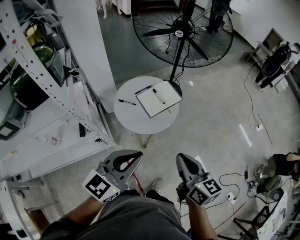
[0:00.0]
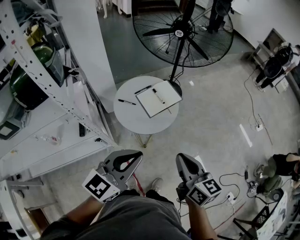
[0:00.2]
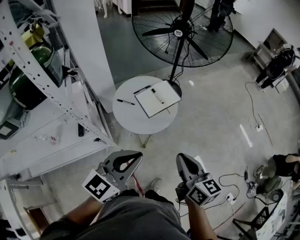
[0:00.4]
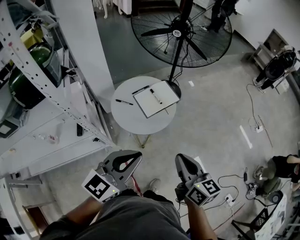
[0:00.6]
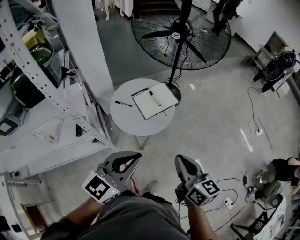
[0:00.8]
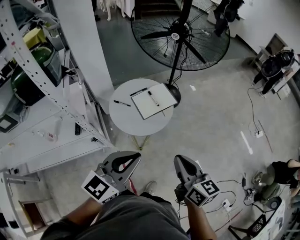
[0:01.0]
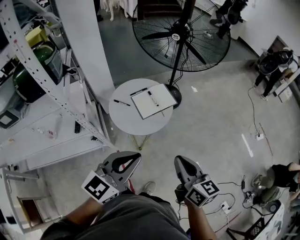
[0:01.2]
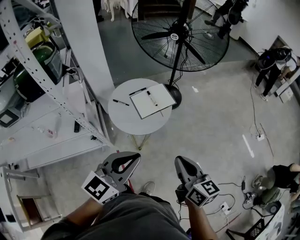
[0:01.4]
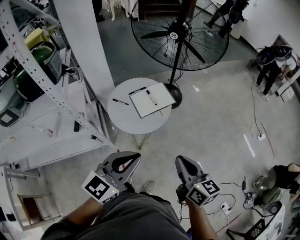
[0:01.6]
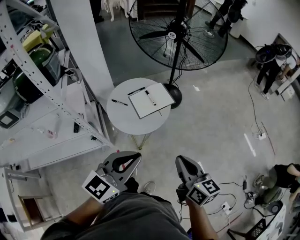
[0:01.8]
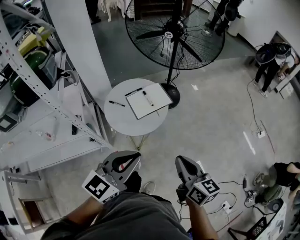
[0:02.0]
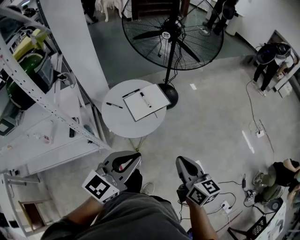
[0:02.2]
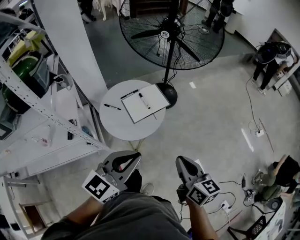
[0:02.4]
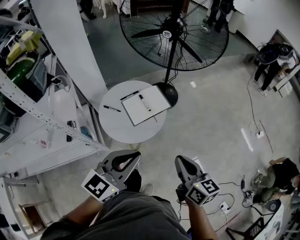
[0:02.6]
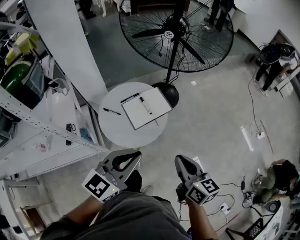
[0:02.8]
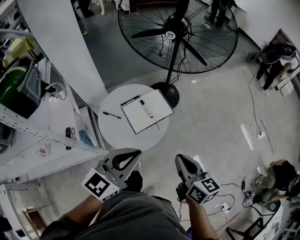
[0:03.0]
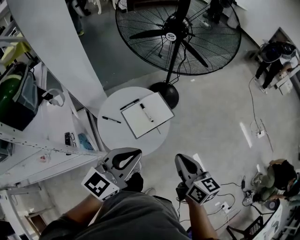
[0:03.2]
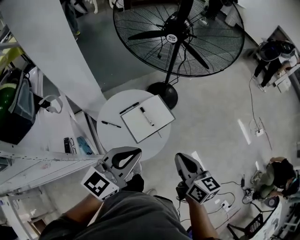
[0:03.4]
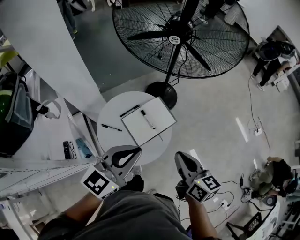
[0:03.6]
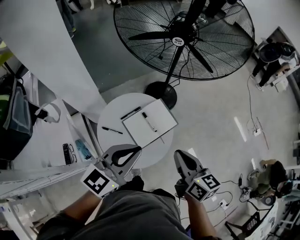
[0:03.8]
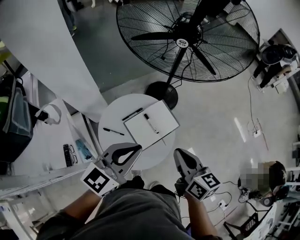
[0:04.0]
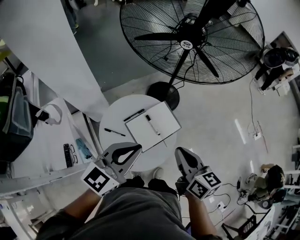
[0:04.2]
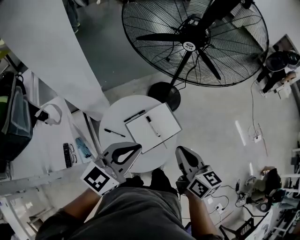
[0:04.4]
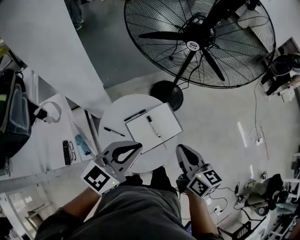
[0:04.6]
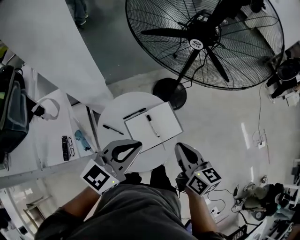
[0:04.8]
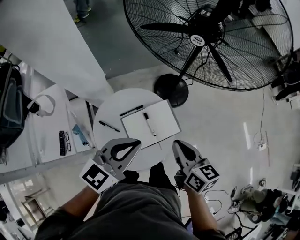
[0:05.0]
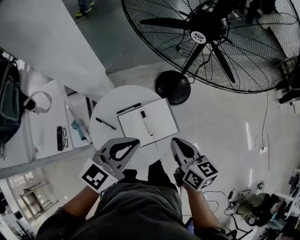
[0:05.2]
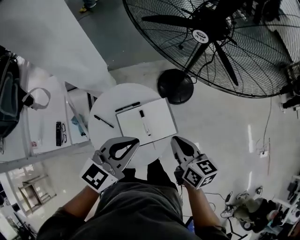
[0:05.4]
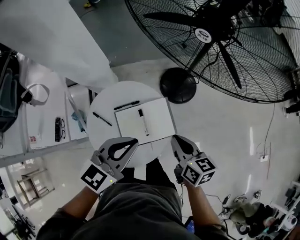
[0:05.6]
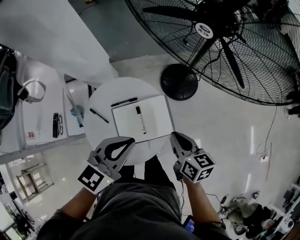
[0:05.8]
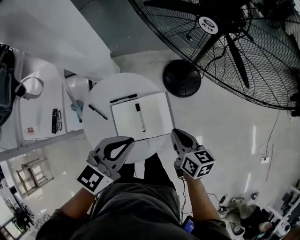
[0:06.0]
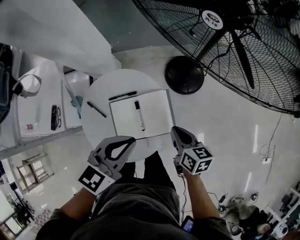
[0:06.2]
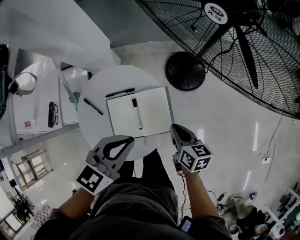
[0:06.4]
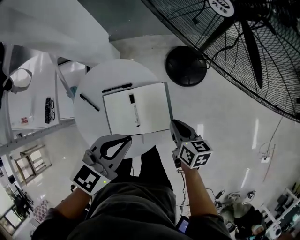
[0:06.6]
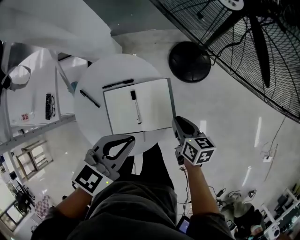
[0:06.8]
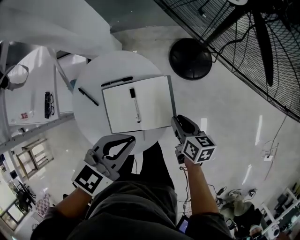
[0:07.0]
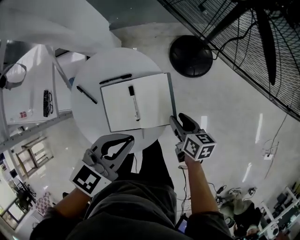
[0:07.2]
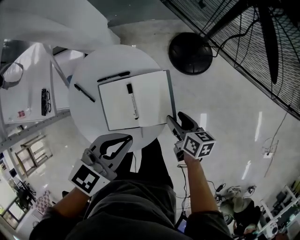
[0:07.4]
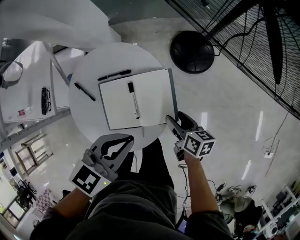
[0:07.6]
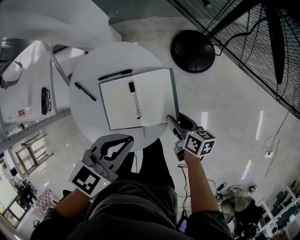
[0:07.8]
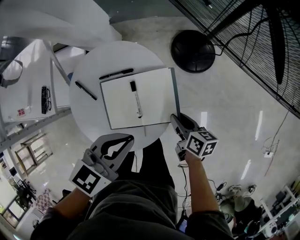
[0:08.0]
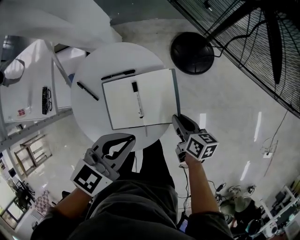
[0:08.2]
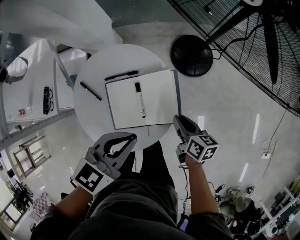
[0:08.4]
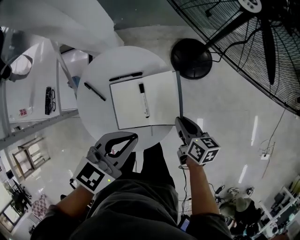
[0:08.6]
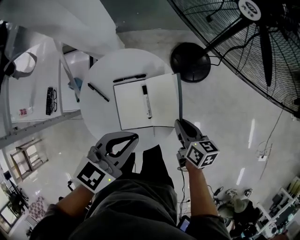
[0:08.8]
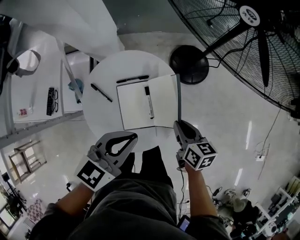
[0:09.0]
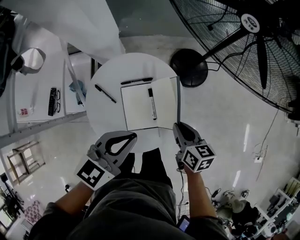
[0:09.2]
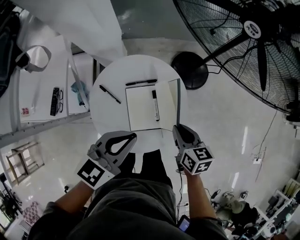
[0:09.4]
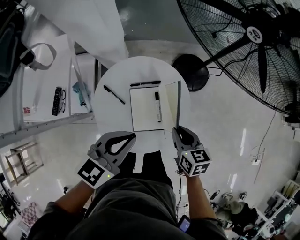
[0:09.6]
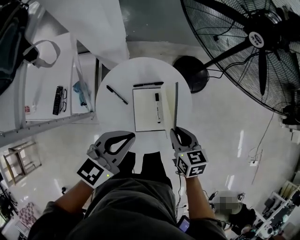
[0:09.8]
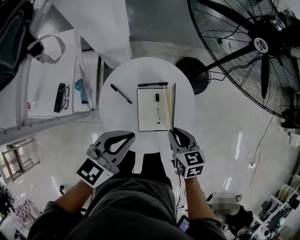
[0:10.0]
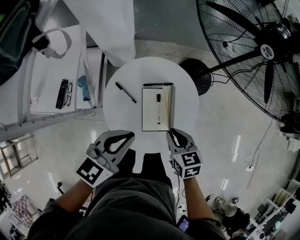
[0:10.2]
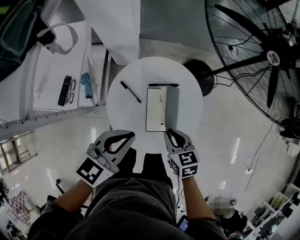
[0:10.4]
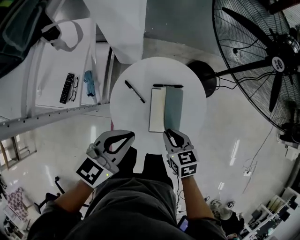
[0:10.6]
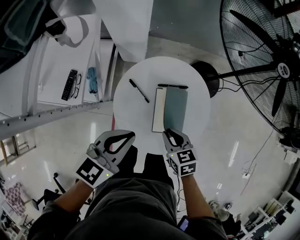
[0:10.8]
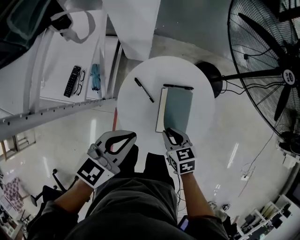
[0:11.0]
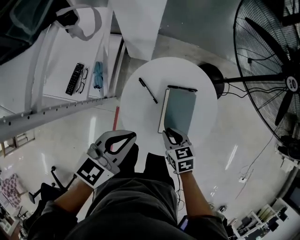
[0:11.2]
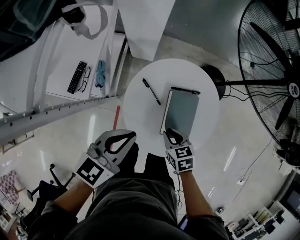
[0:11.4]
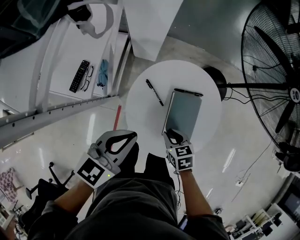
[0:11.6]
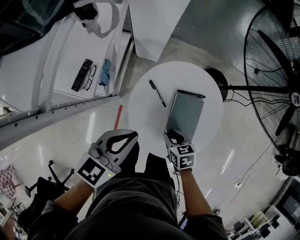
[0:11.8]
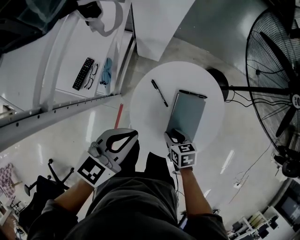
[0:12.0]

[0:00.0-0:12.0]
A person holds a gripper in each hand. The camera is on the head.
0:00.0 to 0:01.6: The two grippers go some 10 cm to the right.
0:01.6 to 0:03.0: Both grippers move forward, approximately 15 cm.
0:03.0 to 0:04.4: The two grippers go approximately 20 cm forward and to the left.
0:04.4 to 0:06.0: The left gripper travels to the right, downward and forward by some 15 cm, and swivels roughly 30 degrees, while the right gripper heads downward, forward and to the right, covering some 25 cm, and changes its angle by approximately 30 degrees.
0:06.0 to 0:07.6: The left gripper goes roughly 10 cm downward; the right gripper moves downward, some 15 cm, and opens its fingers.
0:07.6 to 0:09.0: The right gripper moves upward, roughly 10 cm, and closes its fingers. Meanwhile the left gripper is displaced to the left by some 5 cm.
0:09.0 to 0:10.4: The two grippers go roughly 15 cm to the left. The right gripper changes its angle by about 30 degrees.
0:10.4 to 0:12.0: The left gripper is displaced to the left by about 10 cm, while the right gripper heads downward and to the left, covering roughly 15 cm.

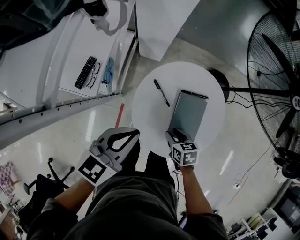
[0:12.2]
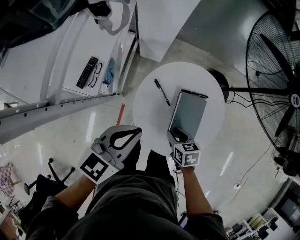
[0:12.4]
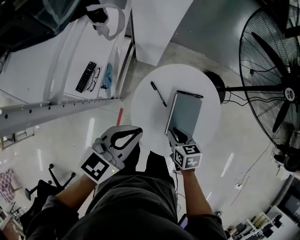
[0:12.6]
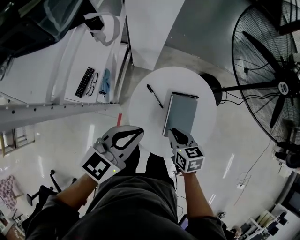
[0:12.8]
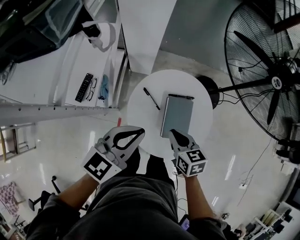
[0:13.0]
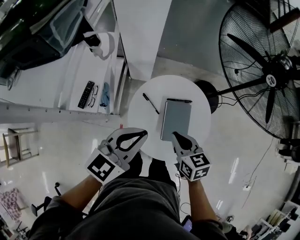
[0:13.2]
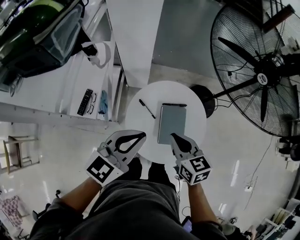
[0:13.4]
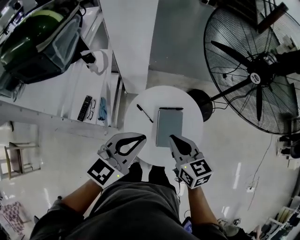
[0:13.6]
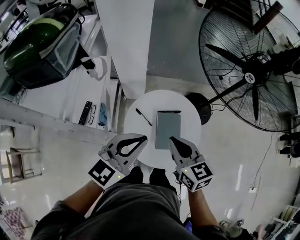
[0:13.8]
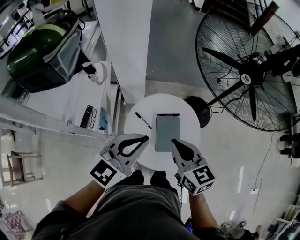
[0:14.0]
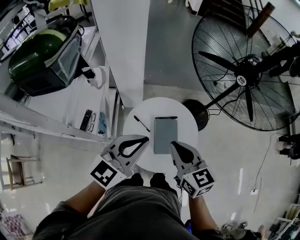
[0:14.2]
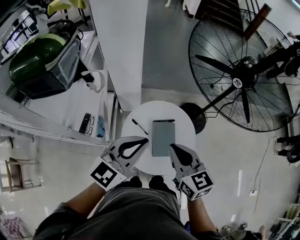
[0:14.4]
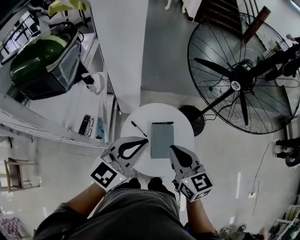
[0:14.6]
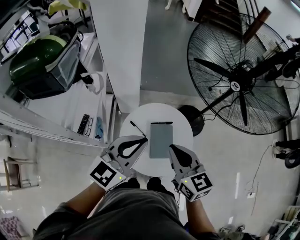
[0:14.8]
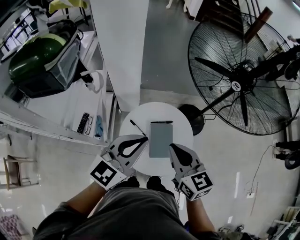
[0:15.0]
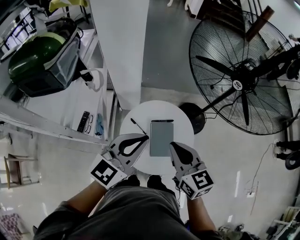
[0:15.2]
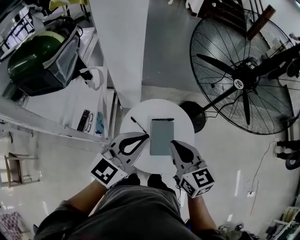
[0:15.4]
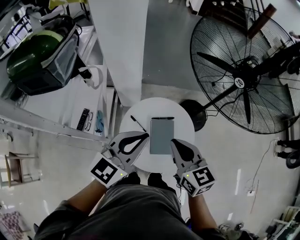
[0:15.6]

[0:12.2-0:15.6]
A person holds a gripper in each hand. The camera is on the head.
0:12.2 to 0:13.8: The left gripper travels upward and to the right by roughly 15 cm, and rotates about 20 degrees. Meanwhile the right gripper moves upward, some 30 cm, tips its fingers upward by roughly 40 degrees, and closes.
0:13.8 to 0:15.6: The left gripper ends up about 5 cm from where it was. The right gripper heads upward, covering roughly 5 cm.

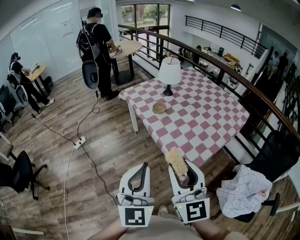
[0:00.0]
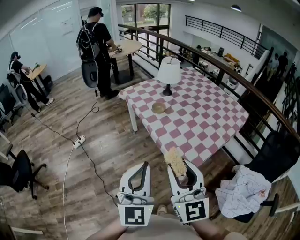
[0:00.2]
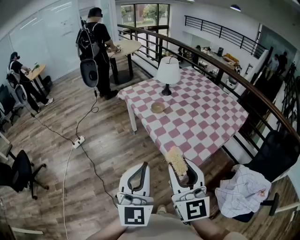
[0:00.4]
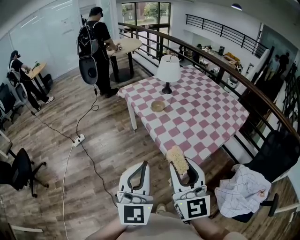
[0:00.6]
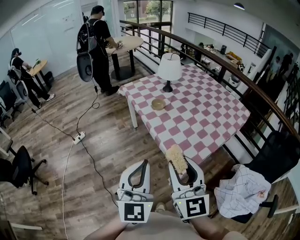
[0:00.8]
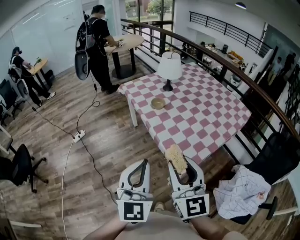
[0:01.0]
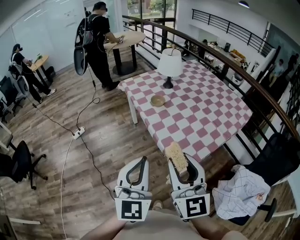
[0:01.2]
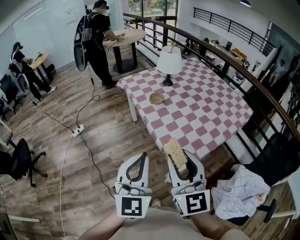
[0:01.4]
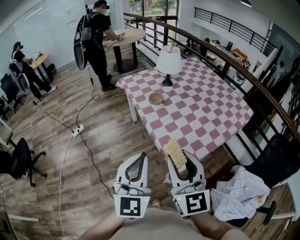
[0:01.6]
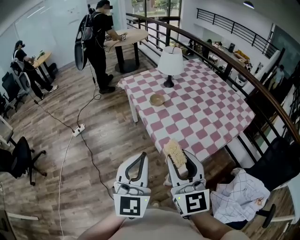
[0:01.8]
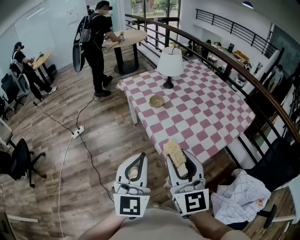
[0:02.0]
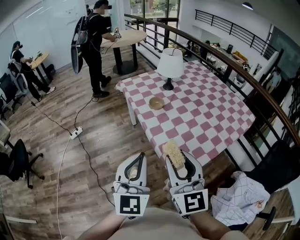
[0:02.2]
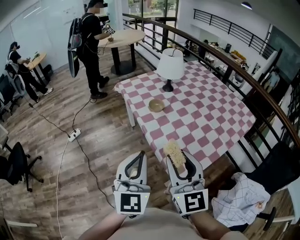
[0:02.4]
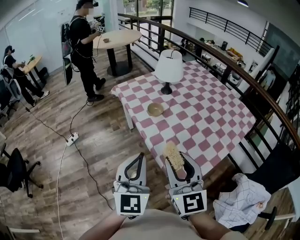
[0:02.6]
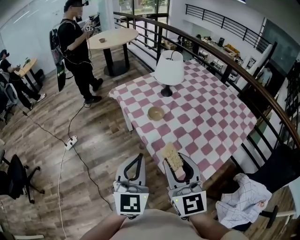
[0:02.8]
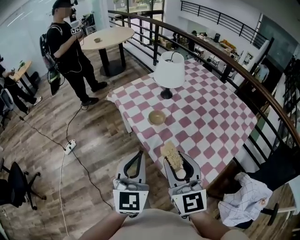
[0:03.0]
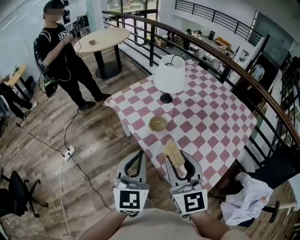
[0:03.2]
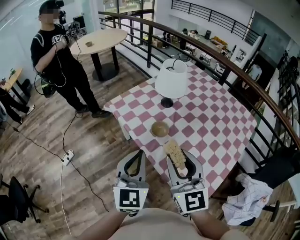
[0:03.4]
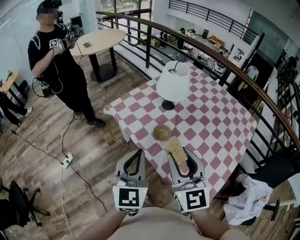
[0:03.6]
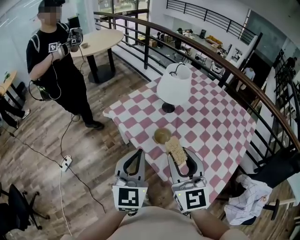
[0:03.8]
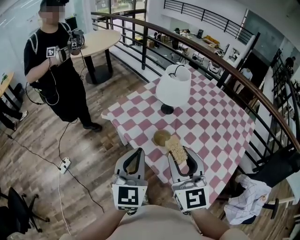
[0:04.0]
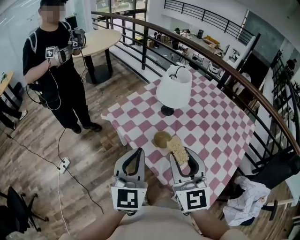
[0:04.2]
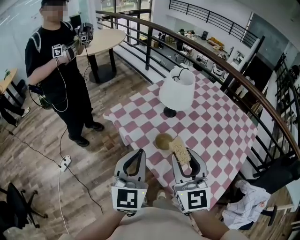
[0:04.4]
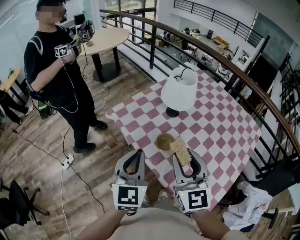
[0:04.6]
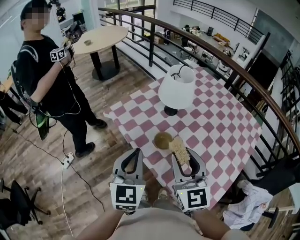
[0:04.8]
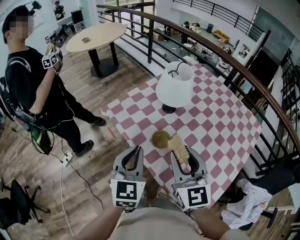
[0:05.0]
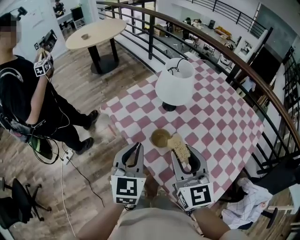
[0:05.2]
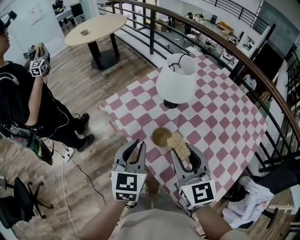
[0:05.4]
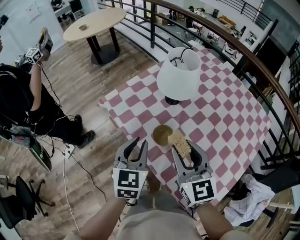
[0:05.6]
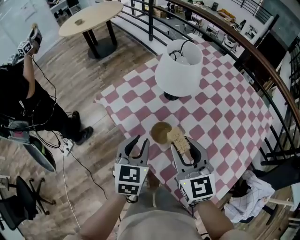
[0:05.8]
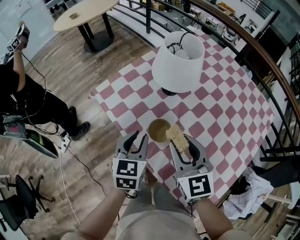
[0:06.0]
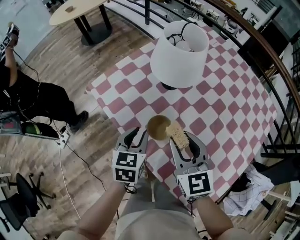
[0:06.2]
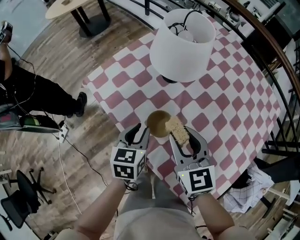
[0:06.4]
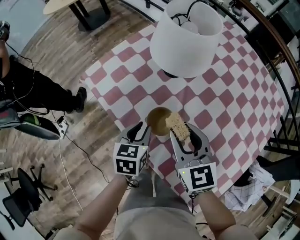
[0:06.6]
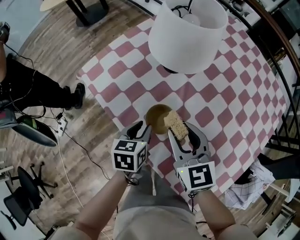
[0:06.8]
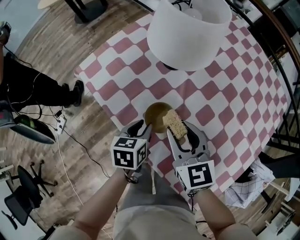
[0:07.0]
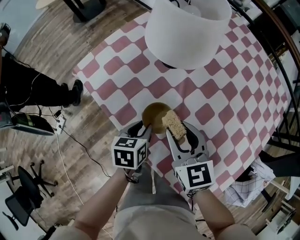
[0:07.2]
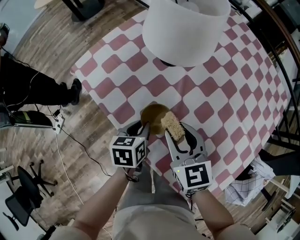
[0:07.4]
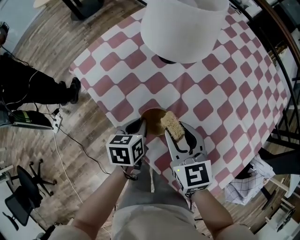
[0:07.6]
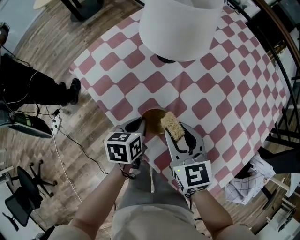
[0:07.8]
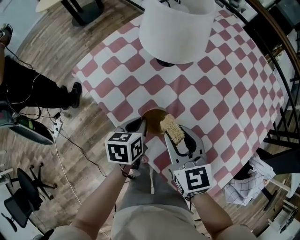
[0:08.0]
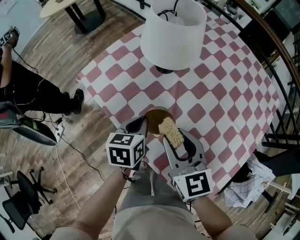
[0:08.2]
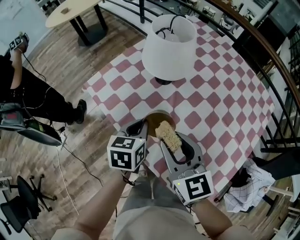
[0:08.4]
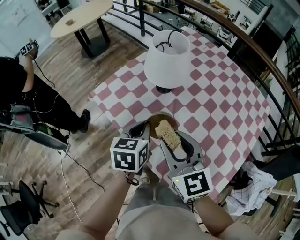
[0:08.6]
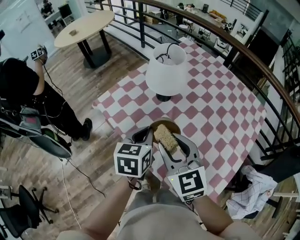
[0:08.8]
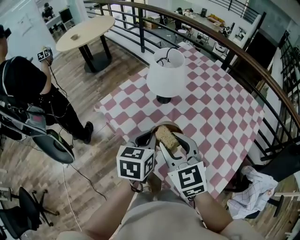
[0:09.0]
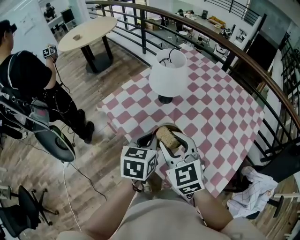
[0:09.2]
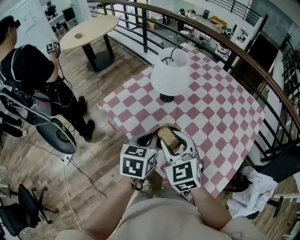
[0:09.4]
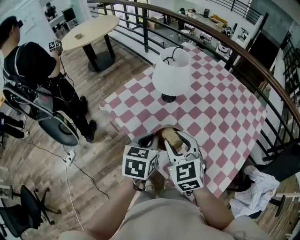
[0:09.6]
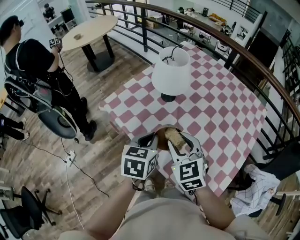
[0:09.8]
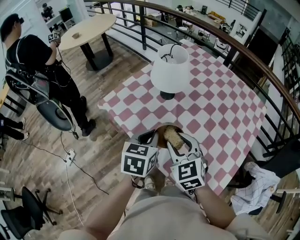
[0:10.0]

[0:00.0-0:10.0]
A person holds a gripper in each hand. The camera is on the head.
0:00.0 to 0:01.4: The grippers both shift to the right by some 5 cm.
0:01.4 to 0:02.8: The grippers both shift forward by some 20 cm.
0:02.8 to 0:04.2: The grippers both shift forward and to the left by about 25 cm.
0:04.2 to 0:05.8: The grippers both shift downward, forward and to the right by about 20 cm. The left gripper turns by roughly 30 degrees, and opens.
0:05.8 to 0:07.2: The two grippers go roughly 20 cm downward. The left gripper changes its angle by roughly 30 degrees.
0:07.2 to 0:08.6: Both grippers move upward, roughly 20 cm. The left gripper closes up.
0:08.6 to 0:10.0: The right gripper changes its angle by some 20 degrees, while the left gripper heads backward, covering about 5 cm.
